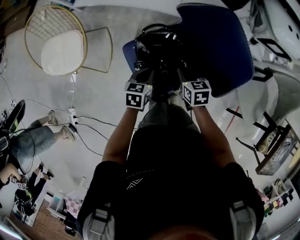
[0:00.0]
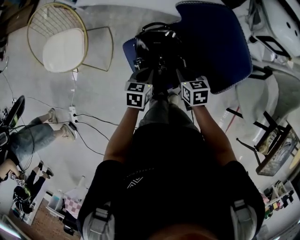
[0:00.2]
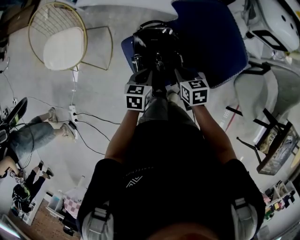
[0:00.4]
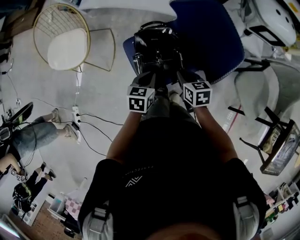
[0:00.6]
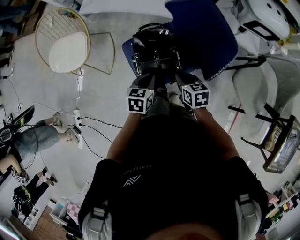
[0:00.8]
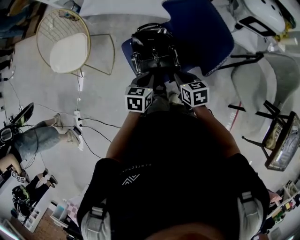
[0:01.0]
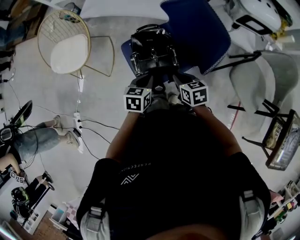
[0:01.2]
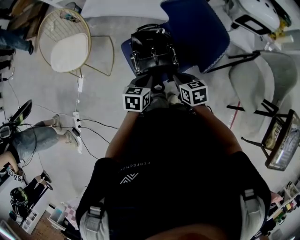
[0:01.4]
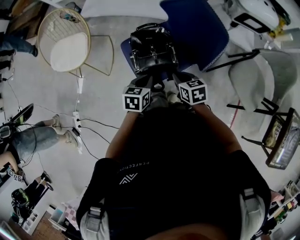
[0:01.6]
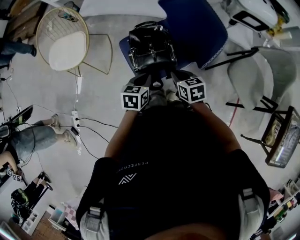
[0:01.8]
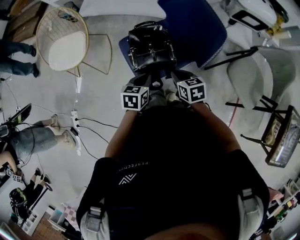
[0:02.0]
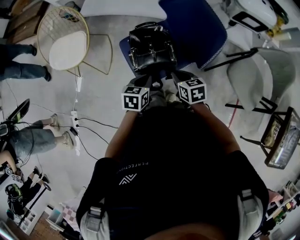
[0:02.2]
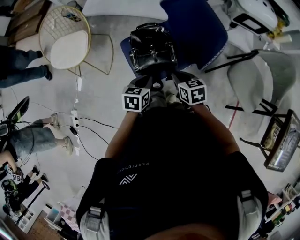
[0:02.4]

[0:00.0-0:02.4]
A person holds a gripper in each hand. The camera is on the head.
0:00.0 to 0:01.2: Both grippers move backward and upward, approximately 15 cm.
0:01.2 to 0:02.4: The grippers make only small movements.

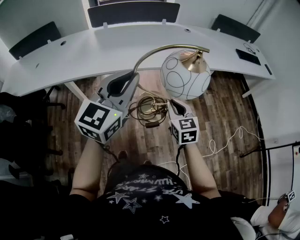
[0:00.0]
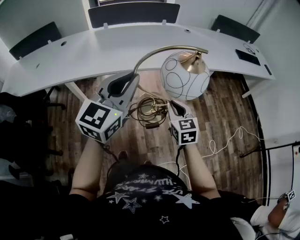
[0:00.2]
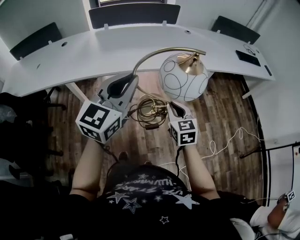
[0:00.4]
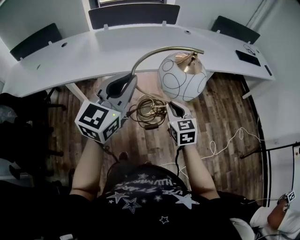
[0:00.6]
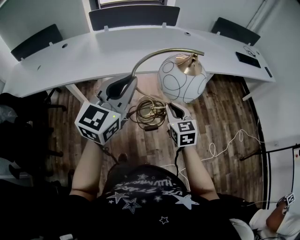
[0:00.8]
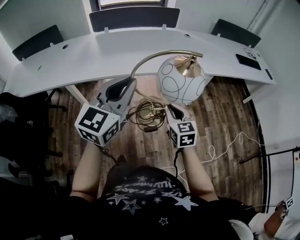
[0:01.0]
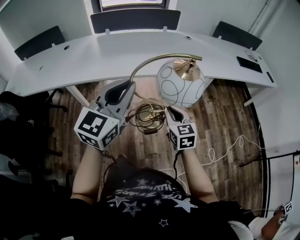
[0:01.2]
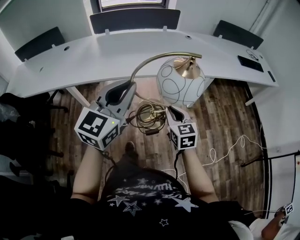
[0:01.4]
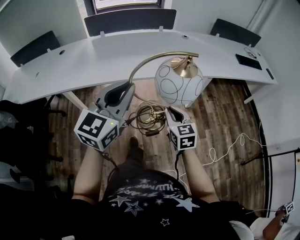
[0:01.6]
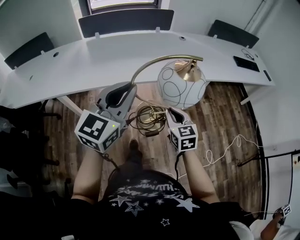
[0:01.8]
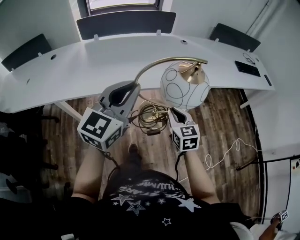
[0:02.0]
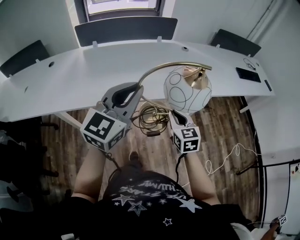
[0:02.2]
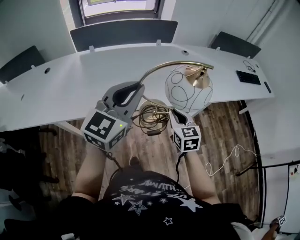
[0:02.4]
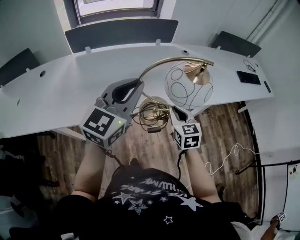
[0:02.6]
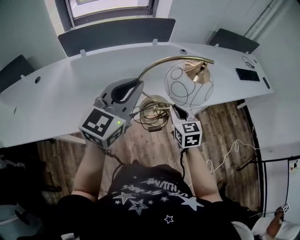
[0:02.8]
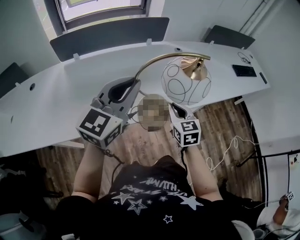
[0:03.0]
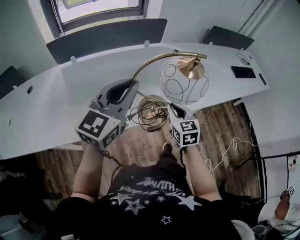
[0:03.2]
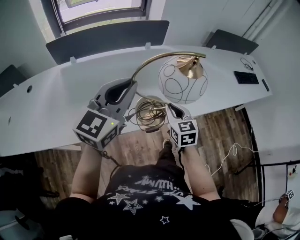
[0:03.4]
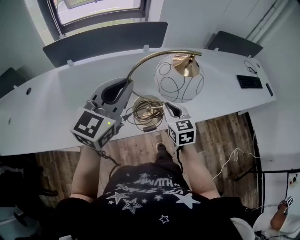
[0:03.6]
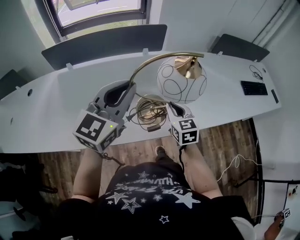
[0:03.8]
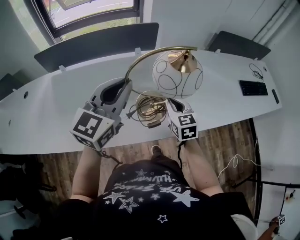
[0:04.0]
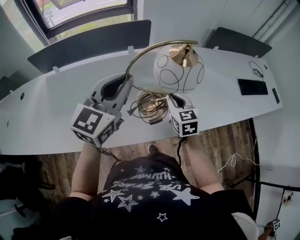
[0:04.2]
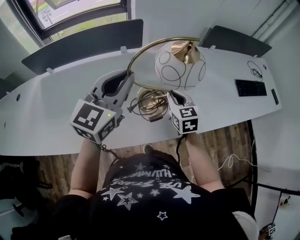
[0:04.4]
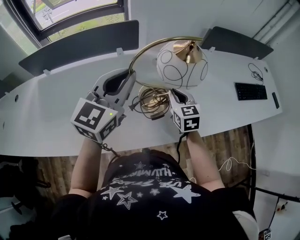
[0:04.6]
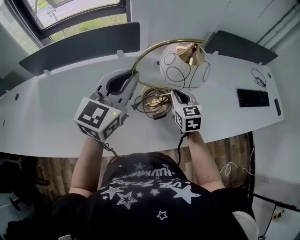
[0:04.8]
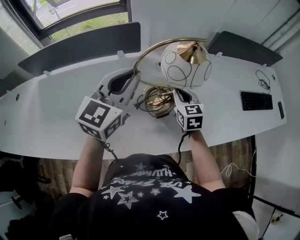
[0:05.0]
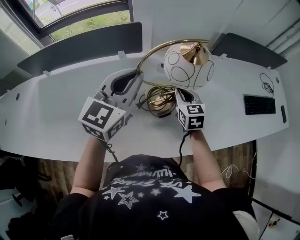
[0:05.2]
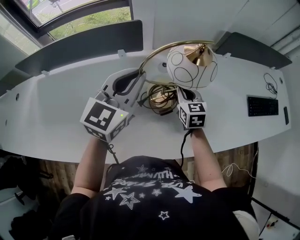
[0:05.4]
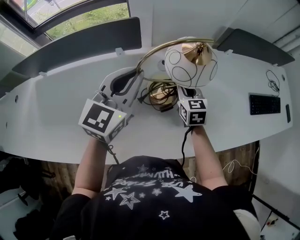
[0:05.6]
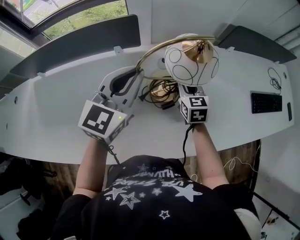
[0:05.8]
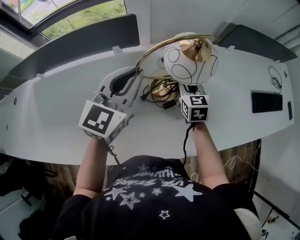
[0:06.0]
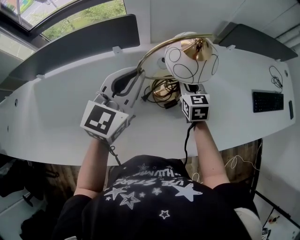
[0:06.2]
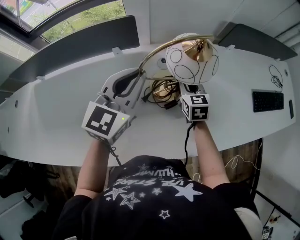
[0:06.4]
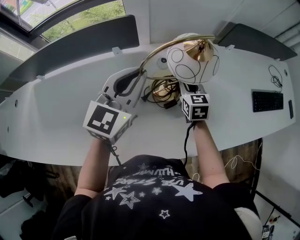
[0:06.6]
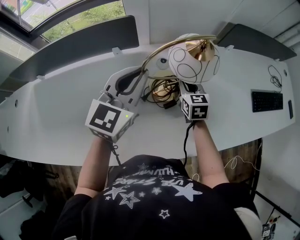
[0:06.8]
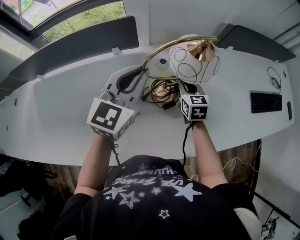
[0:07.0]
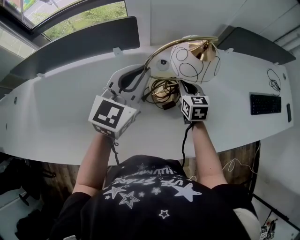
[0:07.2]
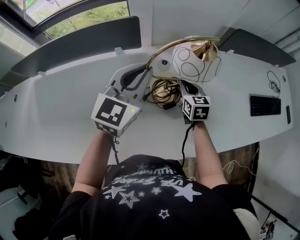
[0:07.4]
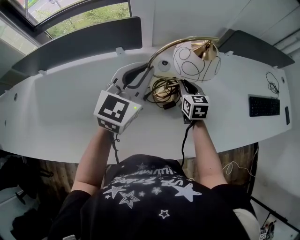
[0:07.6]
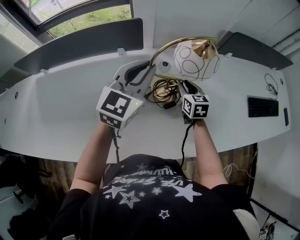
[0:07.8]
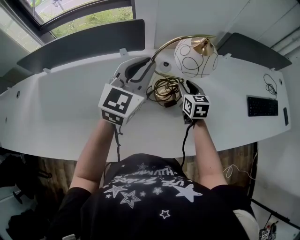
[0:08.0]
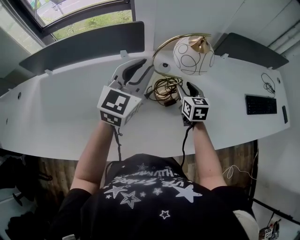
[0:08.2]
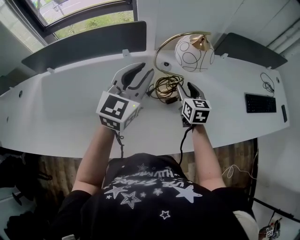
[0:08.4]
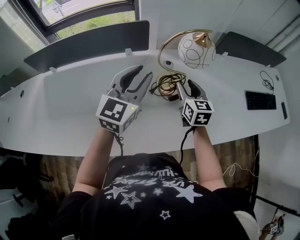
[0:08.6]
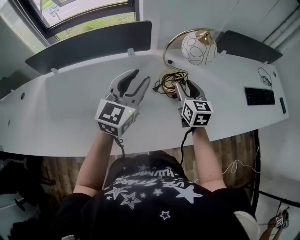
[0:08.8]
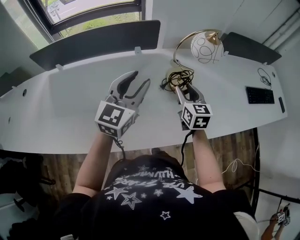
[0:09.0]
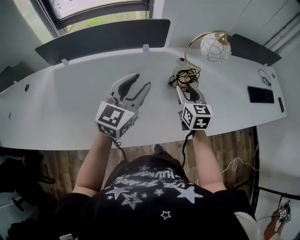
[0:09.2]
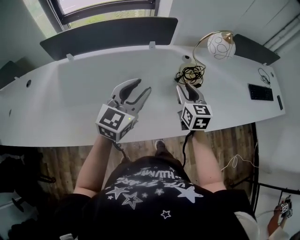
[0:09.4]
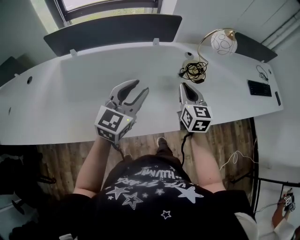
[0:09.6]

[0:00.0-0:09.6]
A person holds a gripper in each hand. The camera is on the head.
0:00.0 to 0:01.6: The grippers make only small movements.
0:01.6 to 0:03.2: The two grippers go about 35 cm forward.
0:03.2 to 0:04.8: The grippers both shift forward and to the right by approximately 40 cm.
0:04.8 to 0:06.4: The grippers both shift forward and downward by about 15 cm.
0:06.4 to 0:08.0: There are only small adjustments of the grippers.
0:08.0 to 0:09.6: The right gripper goes approximately 35 cm backward, to the left and upward, and closes, while the left gripper heads backward and to the left, covering about 35 cm, and opens up.

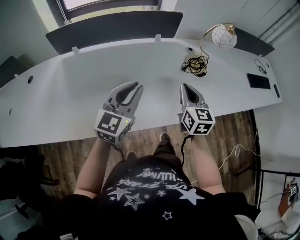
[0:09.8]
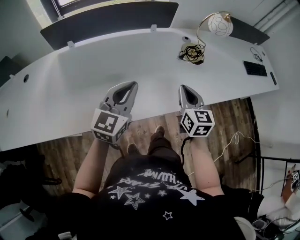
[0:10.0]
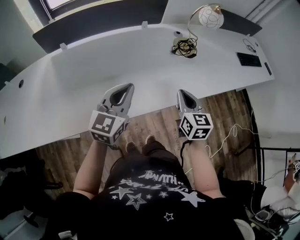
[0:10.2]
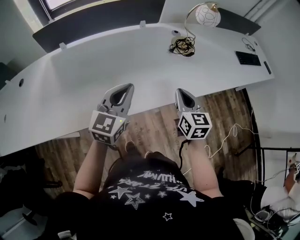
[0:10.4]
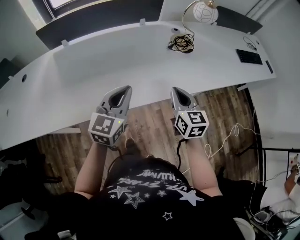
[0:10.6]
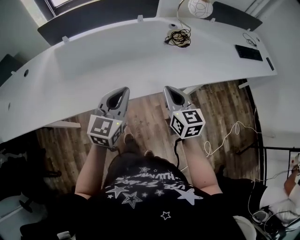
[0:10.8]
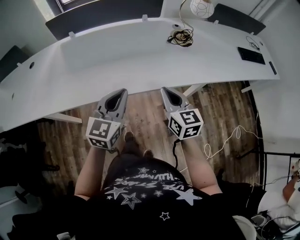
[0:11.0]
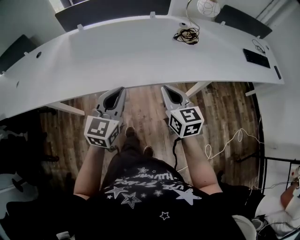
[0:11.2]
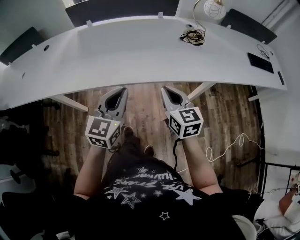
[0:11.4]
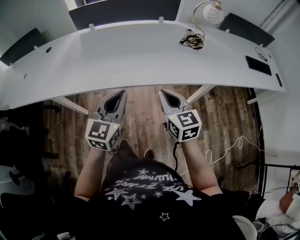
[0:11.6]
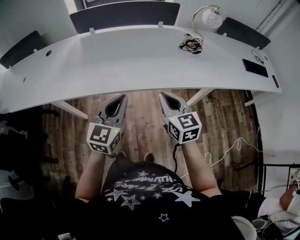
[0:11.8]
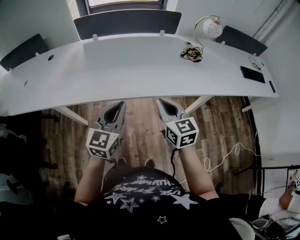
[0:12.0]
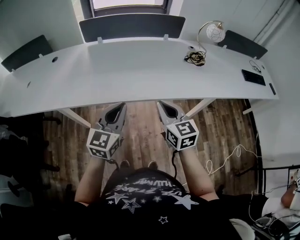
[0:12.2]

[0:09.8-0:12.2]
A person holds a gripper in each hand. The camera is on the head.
0:09.8 to 0:11.0: Both grippers move backward, some 20 cm.
0:11.0 to 0:12.2: The grippers both shift to the left and backward by some 15 cm.

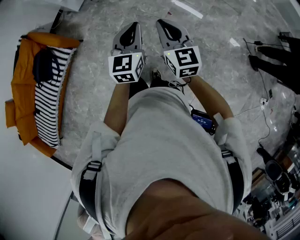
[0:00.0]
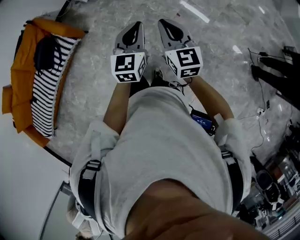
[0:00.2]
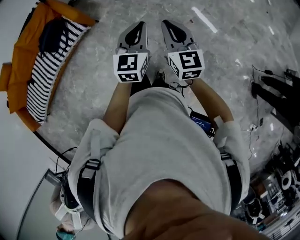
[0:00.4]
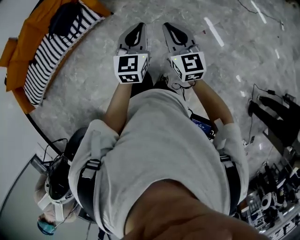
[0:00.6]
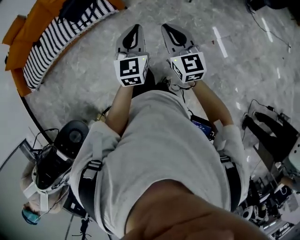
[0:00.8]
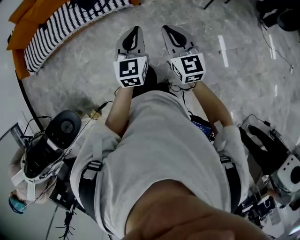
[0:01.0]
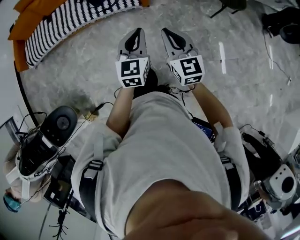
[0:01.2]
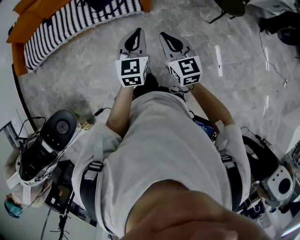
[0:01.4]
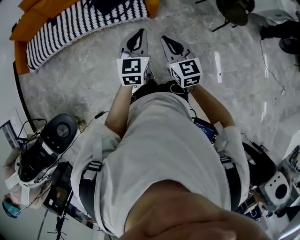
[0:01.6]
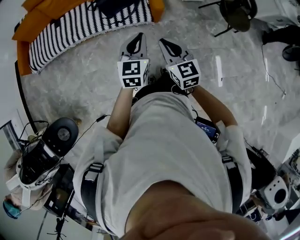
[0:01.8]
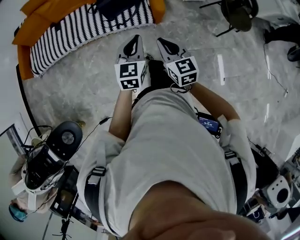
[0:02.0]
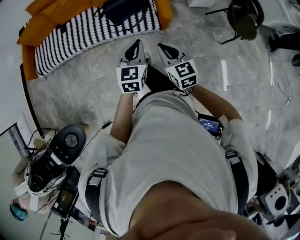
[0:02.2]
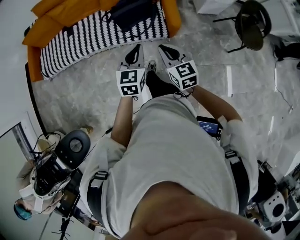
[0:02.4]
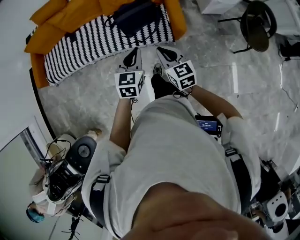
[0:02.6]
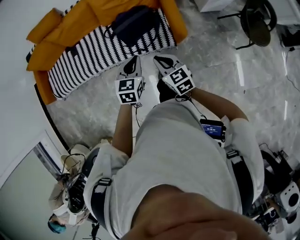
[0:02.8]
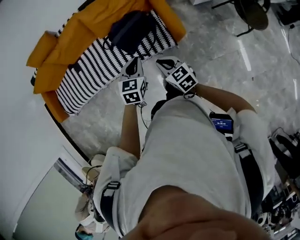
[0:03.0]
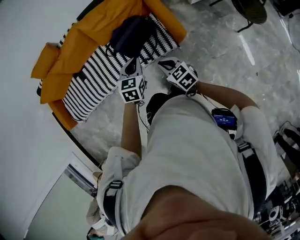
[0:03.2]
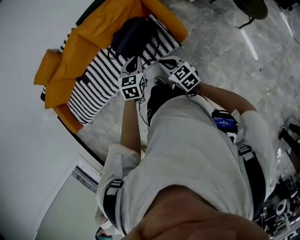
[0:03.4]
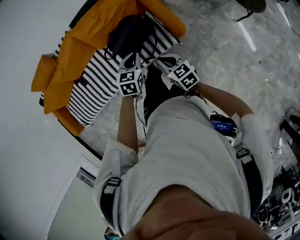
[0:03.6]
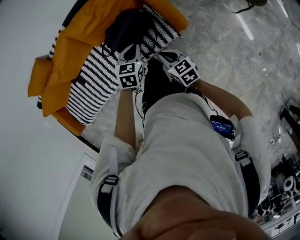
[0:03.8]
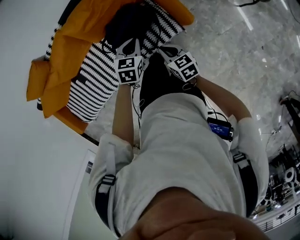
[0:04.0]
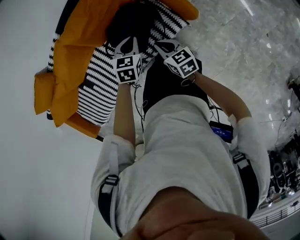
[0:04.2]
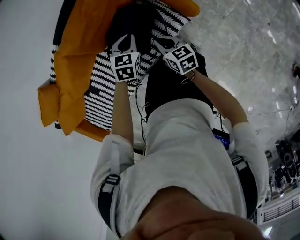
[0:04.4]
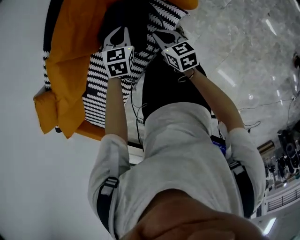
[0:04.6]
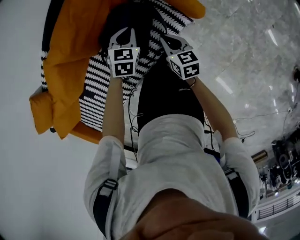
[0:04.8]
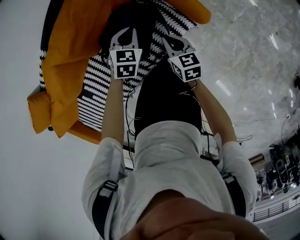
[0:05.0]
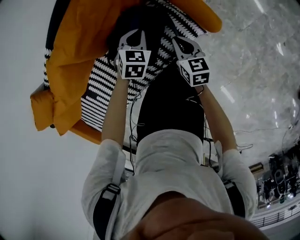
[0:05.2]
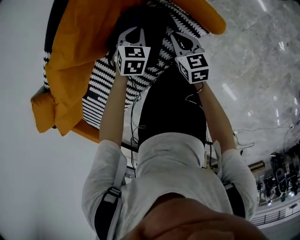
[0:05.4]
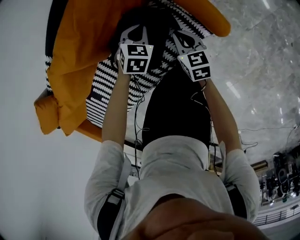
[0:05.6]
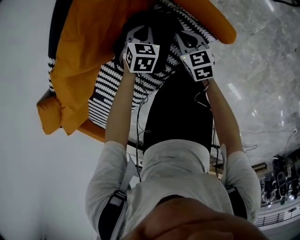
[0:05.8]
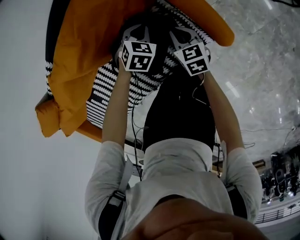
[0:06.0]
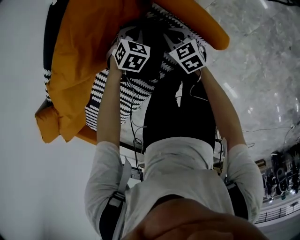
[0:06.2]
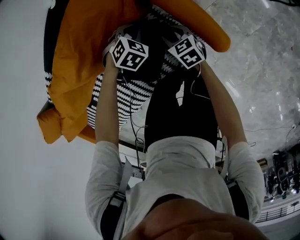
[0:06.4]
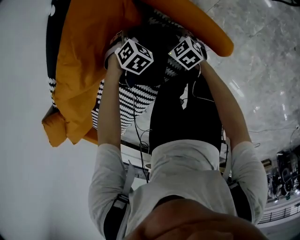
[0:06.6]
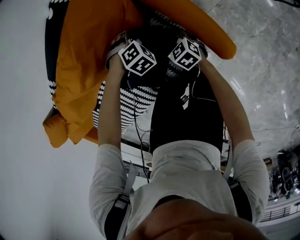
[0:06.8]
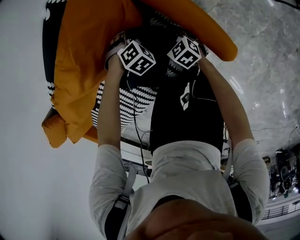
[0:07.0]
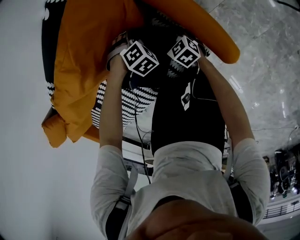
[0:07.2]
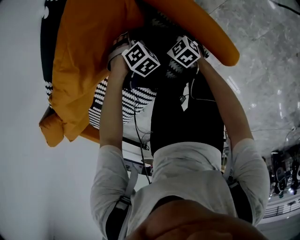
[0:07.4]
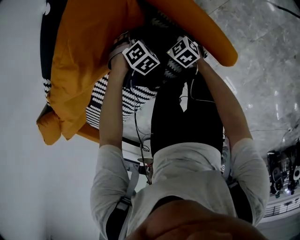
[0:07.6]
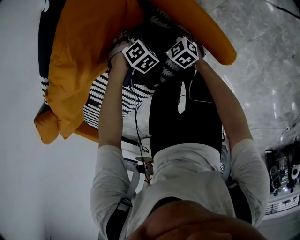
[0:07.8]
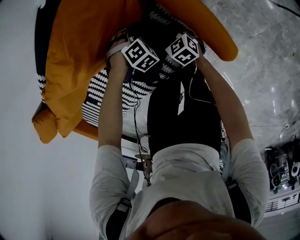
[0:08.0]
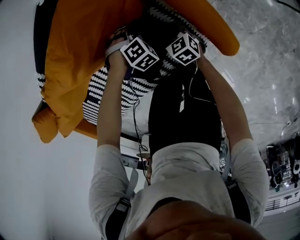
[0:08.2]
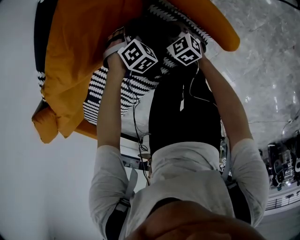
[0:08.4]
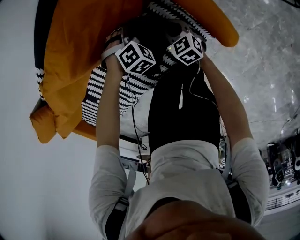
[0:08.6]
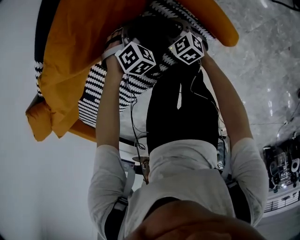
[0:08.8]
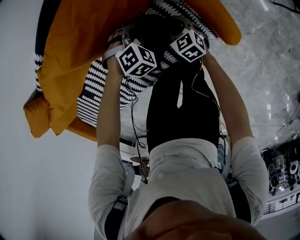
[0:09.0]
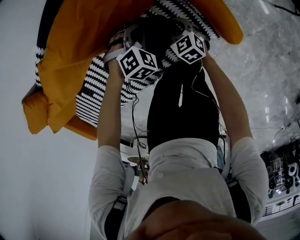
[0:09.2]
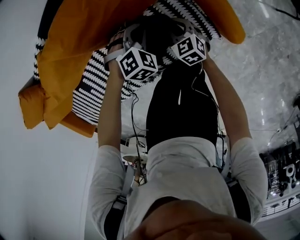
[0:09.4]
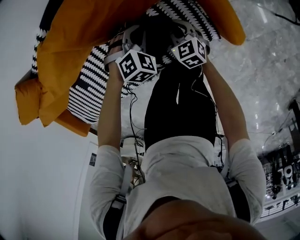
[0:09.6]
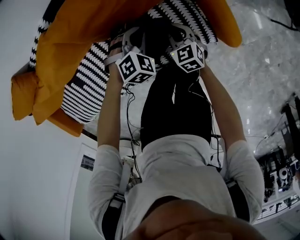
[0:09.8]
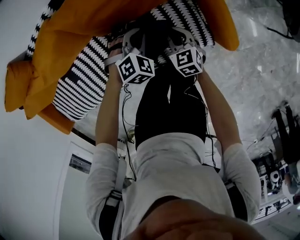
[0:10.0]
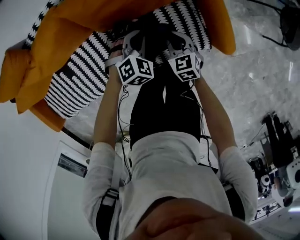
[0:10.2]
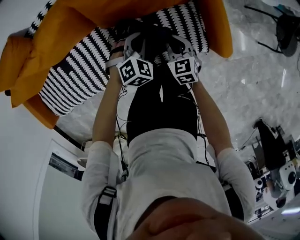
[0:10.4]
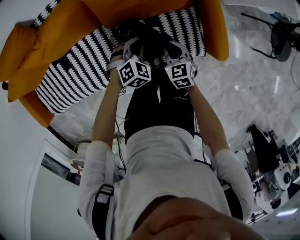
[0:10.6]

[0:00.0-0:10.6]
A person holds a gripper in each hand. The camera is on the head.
0:00.0 to 0:01.6: Both grippers are carried approximately 50 cm. The left gripper rotates approximately 40 degrees. The right gripper turns by roughly 50 degrees.
0:01.6 to 0:03.0: The left gripper shifts about 35 cm forward, and swivels roughly 20 degrees; the right gripper travels forward, to the left and downward by some 35 cm, and rotates about 20 degrees.
0:03.0 to 0:04.6: The right gripper shifts by approximately 30 cm, and rolls clockwise, seen from behind, by approximately 40 degrees; the left gripper shifts by about 35 cm, and rotates about 40 degrees.
0:04.6 to 0:06.0: Both grippers travel together downward and forward, approximately 20 cm.
0:06.0 to 0:07.6: Both grippers travel together downward, roughly 10 cm. The left gripper turns by approximately 40 degrees, and opens its fingers. The right gripper rotates about 20 degrees, and opens.
0:07.6 to 0:09.0: Both grippers move upward, about 10 cm. The right gripper closes, then reopens; the left gripper closes up.
0:09.0 to 0:10.6: The right gripper is displaced upward, to the left and backward by some 20 cm, and closes up. Meanwhile the left gripper is displaced to the left, upward and backward by about 20 cm, and swivels roughly 30 degrees.
